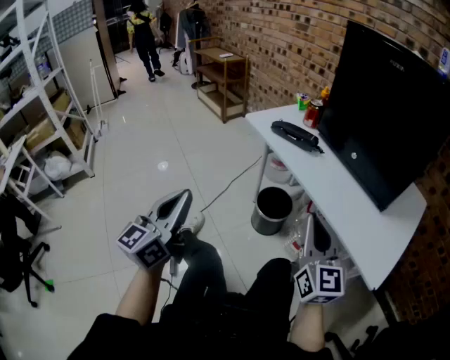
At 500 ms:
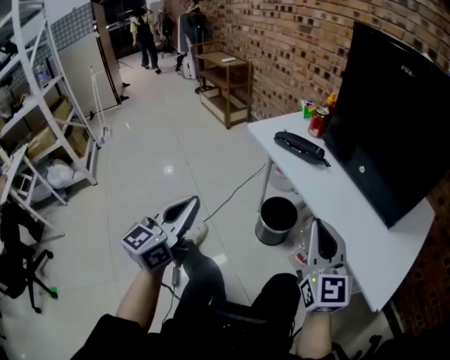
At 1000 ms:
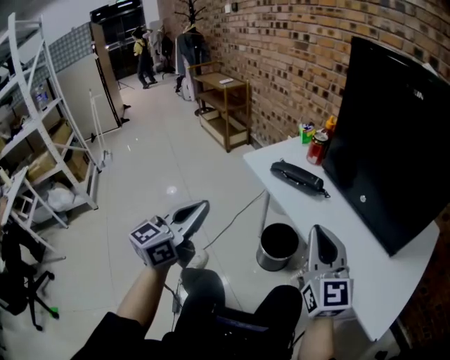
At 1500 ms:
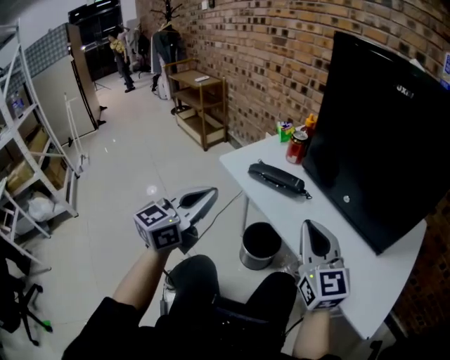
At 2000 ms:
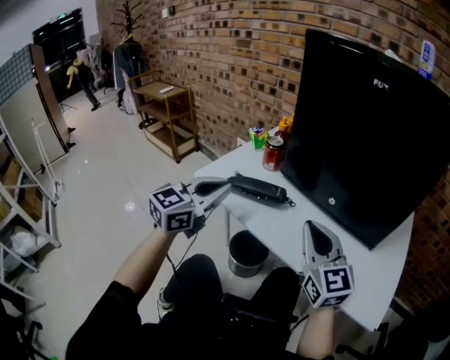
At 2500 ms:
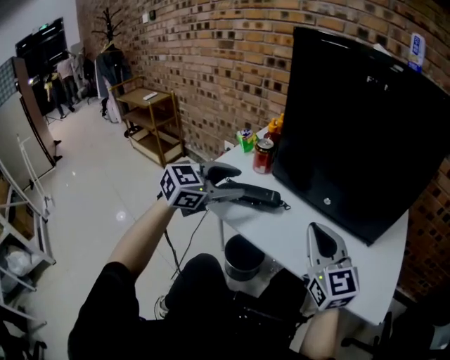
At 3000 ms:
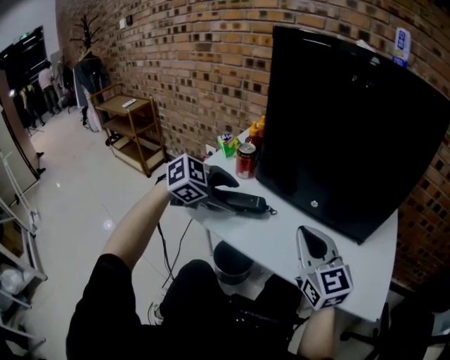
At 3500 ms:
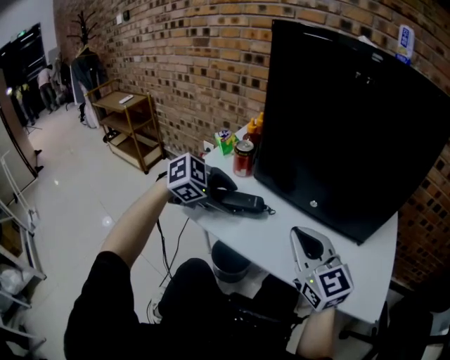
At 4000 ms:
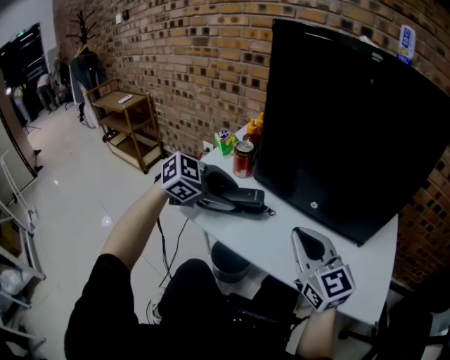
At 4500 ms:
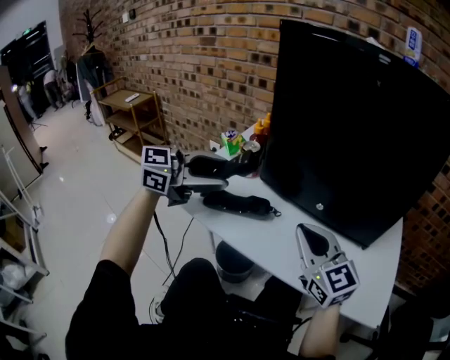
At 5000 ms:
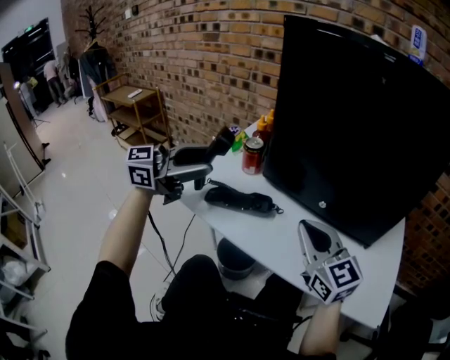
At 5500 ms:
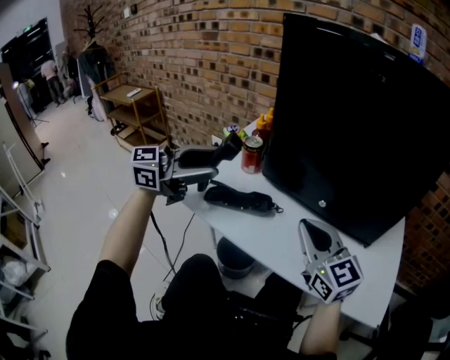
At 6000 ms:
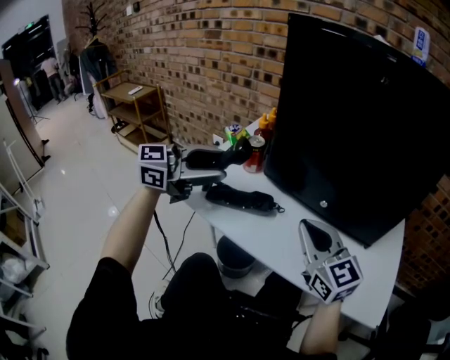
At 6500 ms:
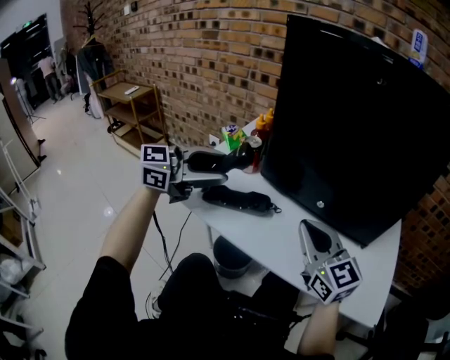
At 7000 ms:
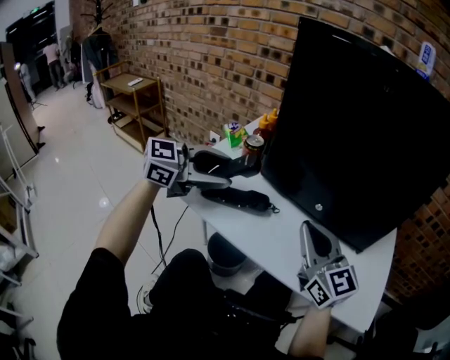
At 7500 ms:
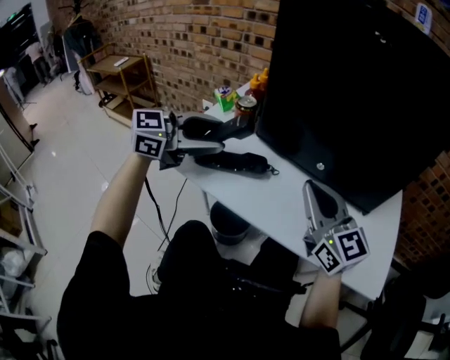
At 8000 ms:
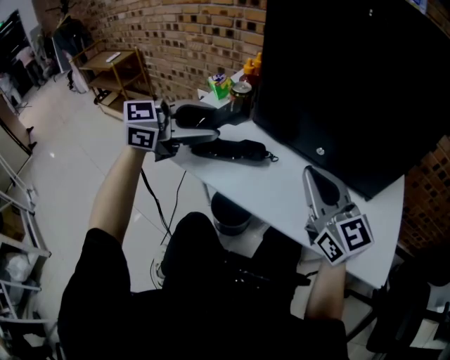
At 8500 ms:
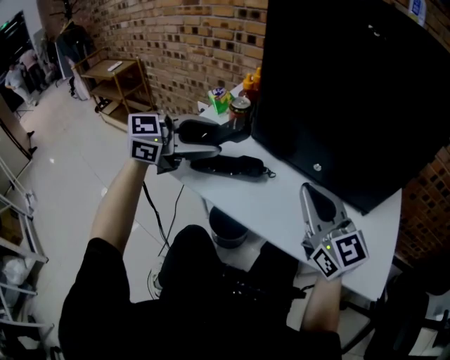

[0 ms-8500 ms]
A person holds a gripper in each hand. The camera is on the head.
0 ms to 2000 ms: The left gripper moves forward, some 35 cm, and changes its angle by roughly 40 degrees, while the right gripper moves forward, approximately 20 cm.
2000 ms to 4000 ms: The left gripper is displaced forward and downward by some 10 cm, angles its fingers downward, by roughly 30 degrees, and opens.
4000 ms to 6500 ms: The left gripper heads upward, covering approximately 10 cm, and tilts its fingers approximately 30 degrees upward.
6500 ms to 8500 ms: The grippers stay close to where they were, moving slightly.

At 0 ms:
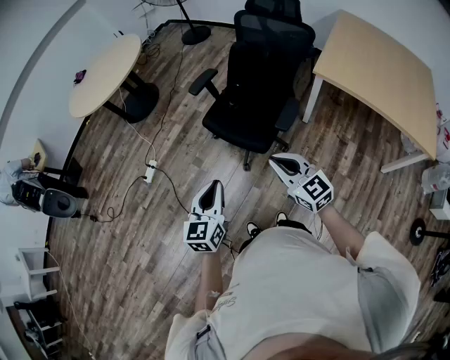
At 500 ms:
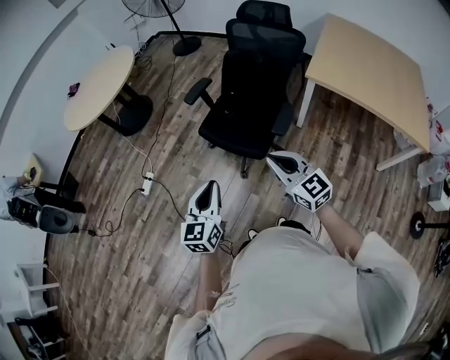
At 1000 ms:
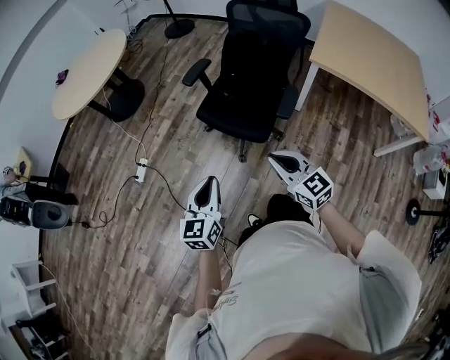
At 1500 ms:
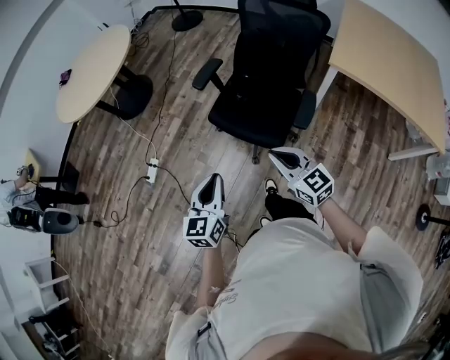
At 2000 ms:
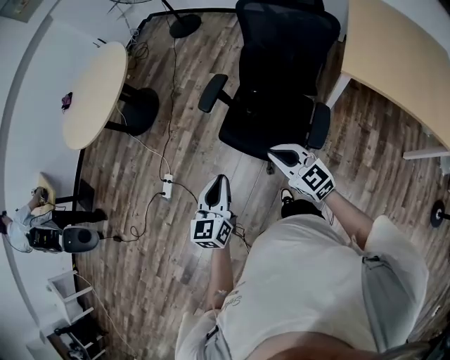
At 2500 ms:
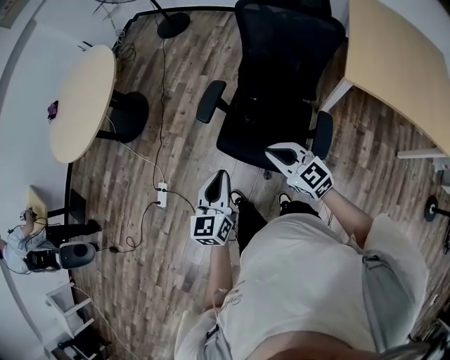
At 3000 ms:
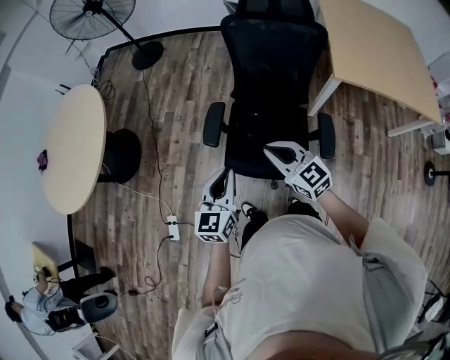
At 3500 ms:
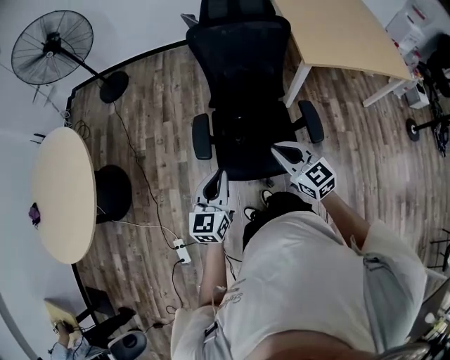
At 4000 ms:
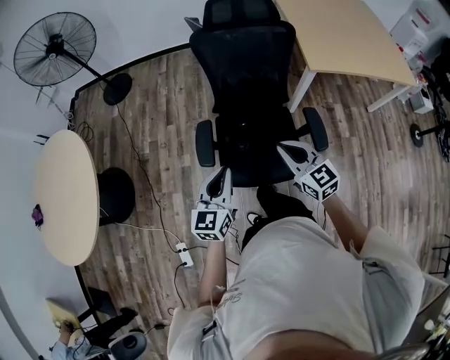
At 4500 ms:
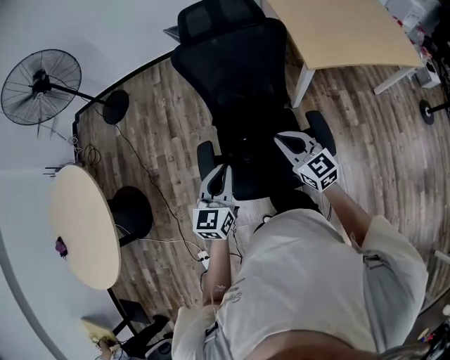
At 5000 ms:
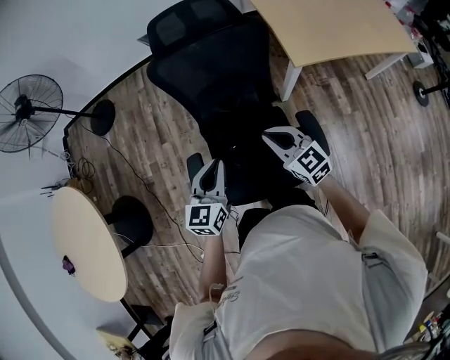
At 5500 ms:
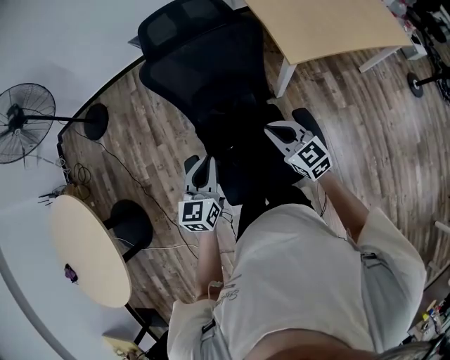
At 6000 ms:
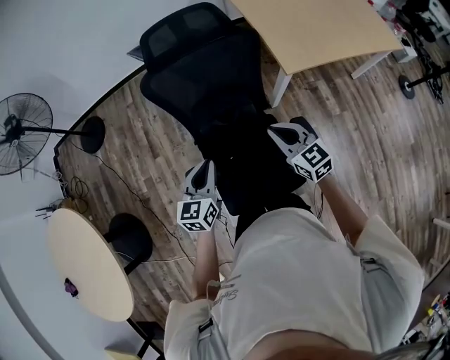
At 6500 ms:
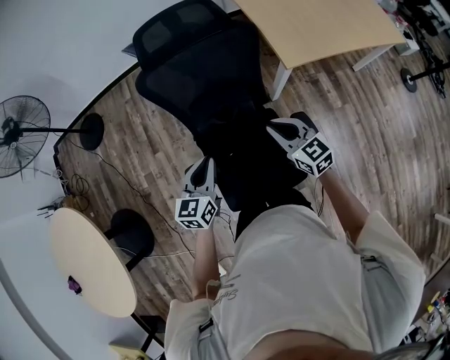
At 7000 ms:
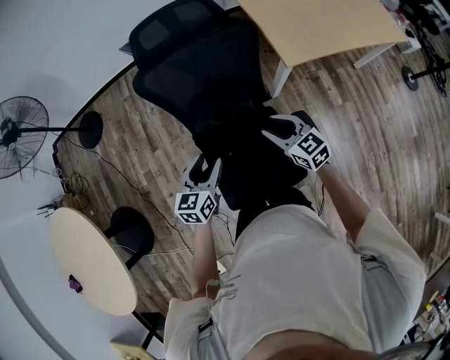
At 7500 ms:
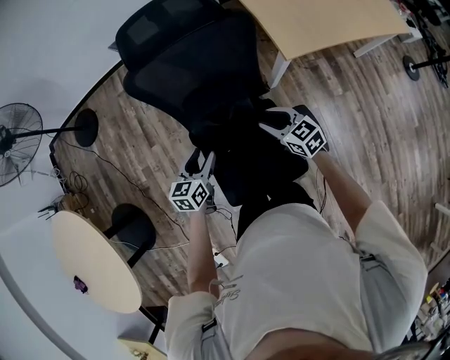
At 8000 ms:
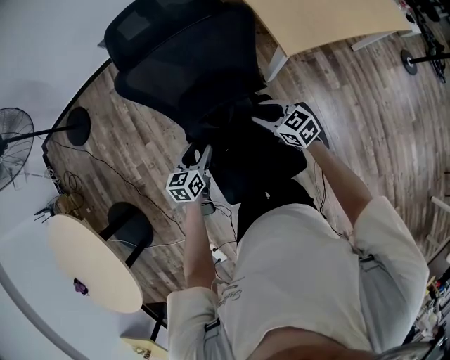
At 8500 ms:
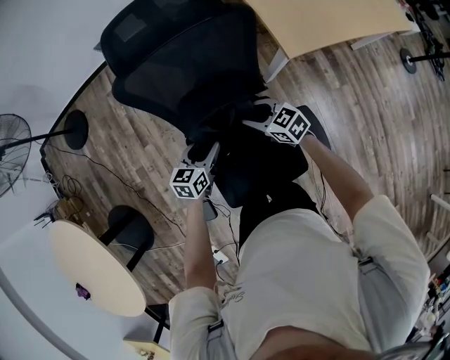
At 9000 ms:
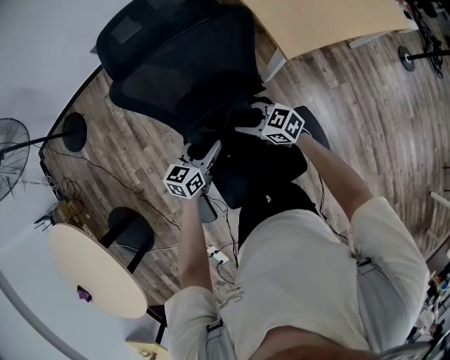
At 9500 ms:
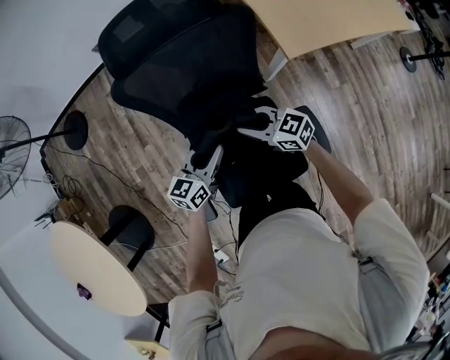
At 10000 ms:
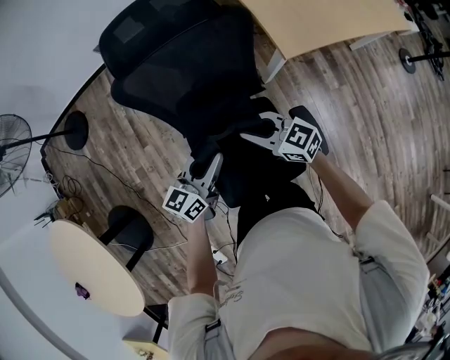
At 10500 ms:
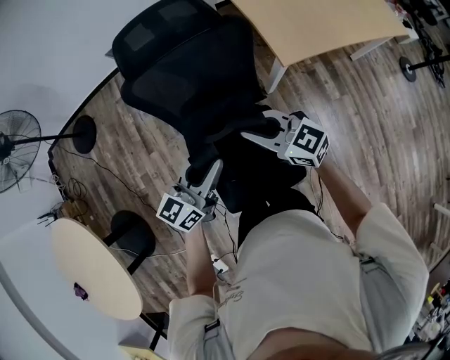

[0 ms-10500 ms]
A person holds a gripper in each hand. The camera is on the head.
0 ms to 2000 ms: Both grippers travel together forward, some 25 cm.
2000 ms to 4000 ms: The right gripper moves some 15 cm, and turns by approximately 40 degrees; the left gripper changes place by about 25 cm, and turns by about 40 degrees.
4000 ms to 6500 ms: The right gripper goes approximately 25 cm forward and to the right. Meanwhile the left gripper moves forward, about 25 cm.
6500 ms to 8500 ms: The two grippers go approximately 20 cm downward and forward. The right gripper changes its angle by roughly 20 degrees, and opens, while the left gripper opens its fingers.
8500 ms to 10500 ms: Both grippers travel together upward, approximately 20 cm. The right gripper swivels some 20 degrees, and closes its fingers. The left gripper swivels some 30 degrees, and closes up.

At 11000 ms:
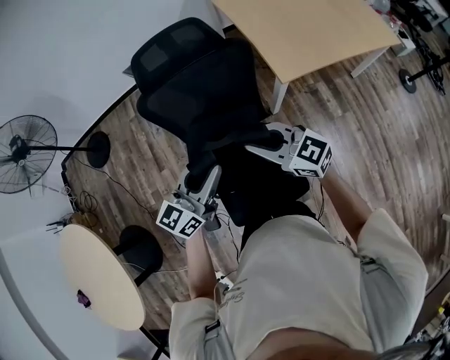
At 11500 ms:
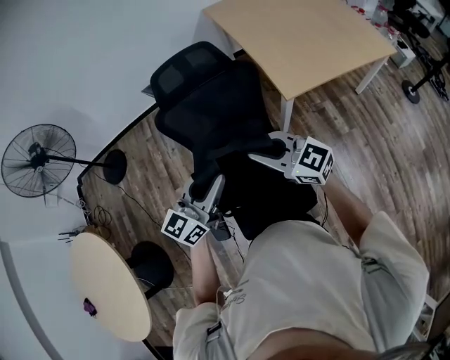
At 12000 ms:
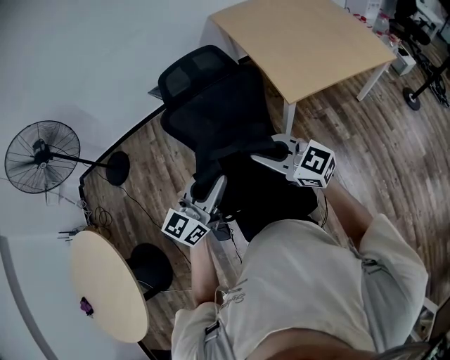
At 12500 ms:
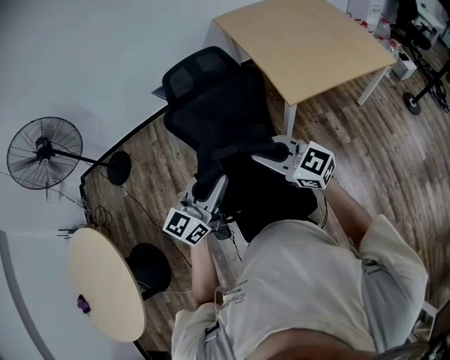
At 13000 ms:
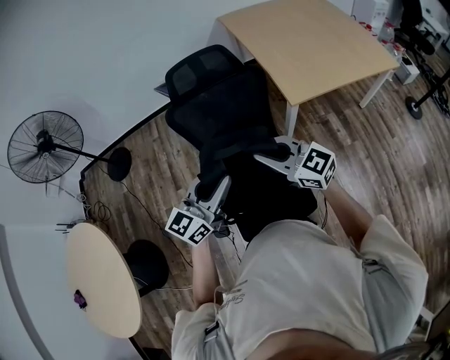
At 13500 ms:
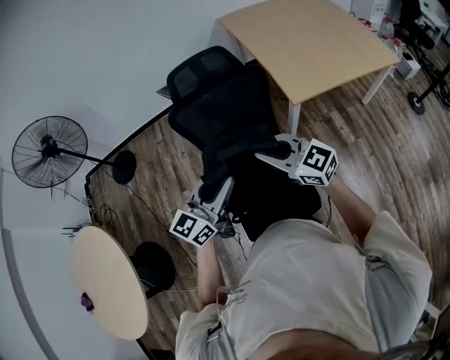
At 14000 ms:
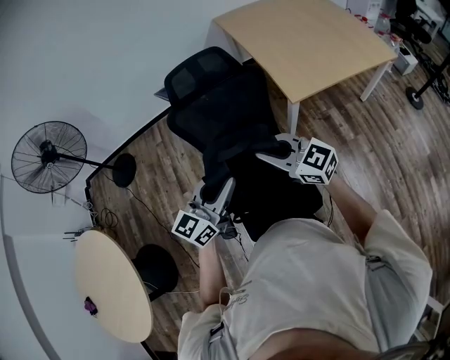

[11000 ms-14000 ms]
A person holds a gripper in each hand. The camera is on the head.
11000 ms to 12500 ms: Both grippers move upward and backward, about 10 cm.
12500 ms to 14000 ms: The grippers make only small movements.

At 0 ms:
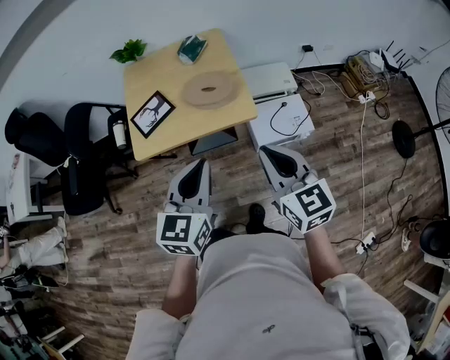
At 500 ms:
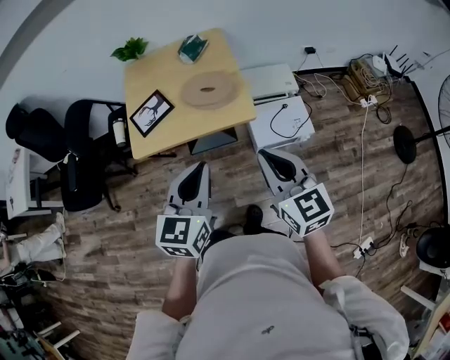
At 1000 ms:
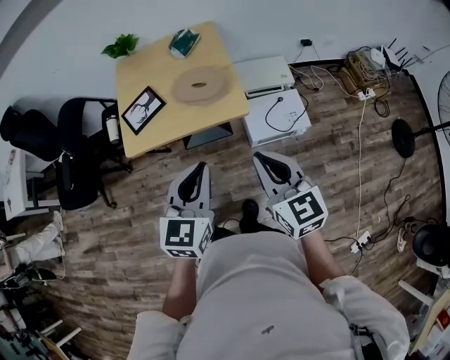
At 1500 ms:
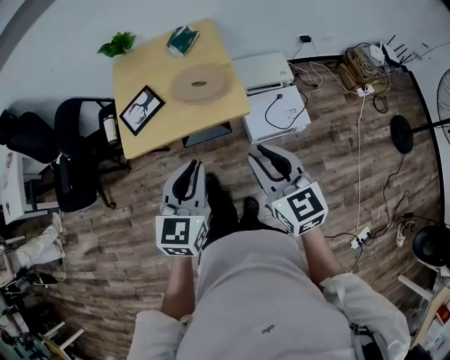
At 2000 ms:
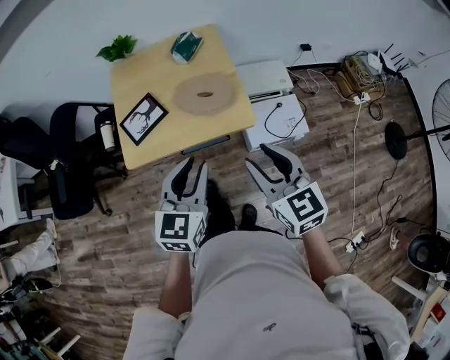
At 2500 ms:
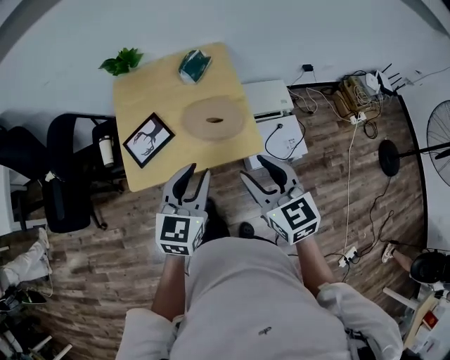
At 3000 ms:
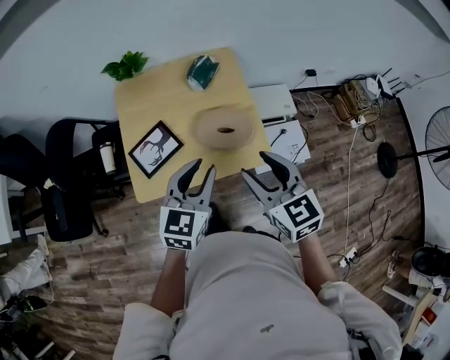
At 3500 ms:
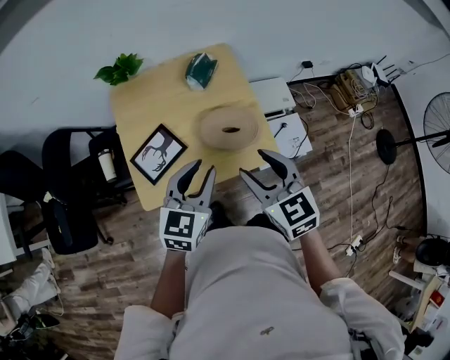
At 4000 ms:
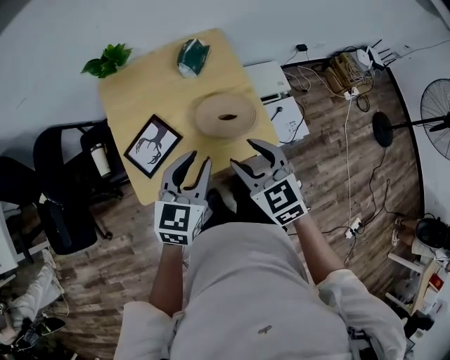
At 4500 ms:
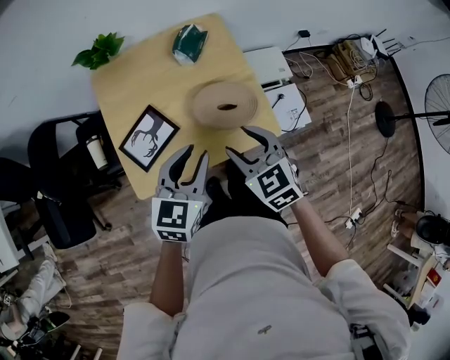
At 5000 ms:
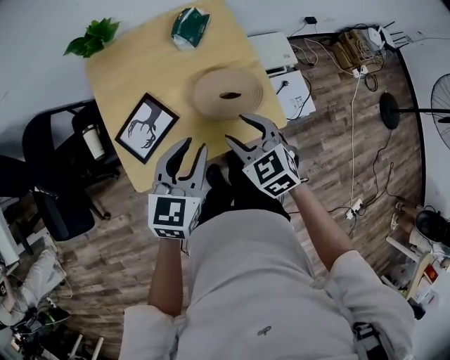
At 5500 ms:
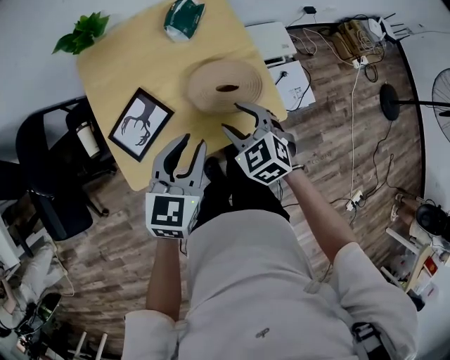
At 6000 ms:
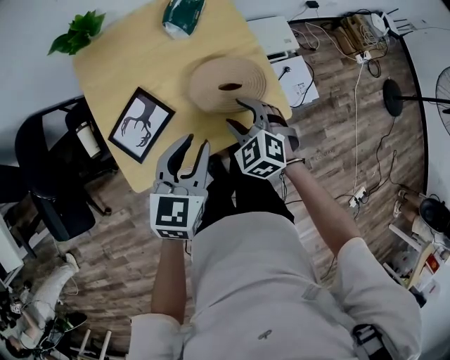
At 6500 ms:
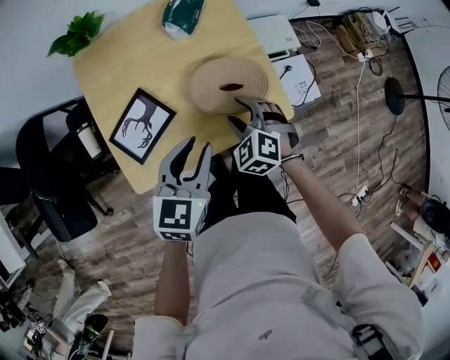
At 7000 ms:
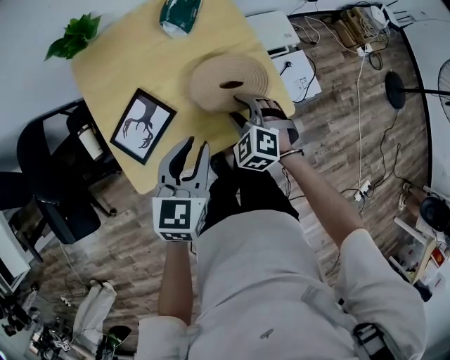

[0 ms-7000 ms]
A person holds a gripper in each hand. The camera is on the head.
0 ms to 2000 ms: The grippers both shift forward by about 10 cm. The left gripper opens its fingers; the right gripper opens up.
2000 ms to 3500 ms: Both grippers move forward and to the left, some 20 cm.
3500 ms to 5000 ms: The right gripper goes roughly 15 cm downward. Meanwhile the left gripper shifts about 5 cm downward.
5000 ms to 7000 ms: The right gripper shifts roughly 10 cm downward, and rotates about 30 degrees.
